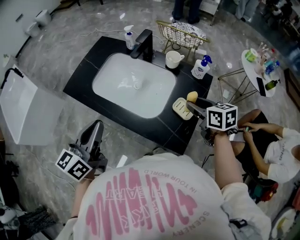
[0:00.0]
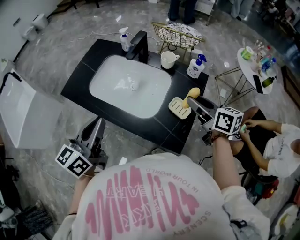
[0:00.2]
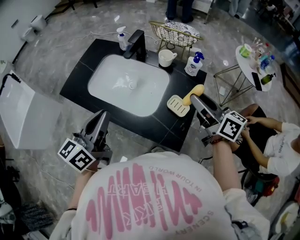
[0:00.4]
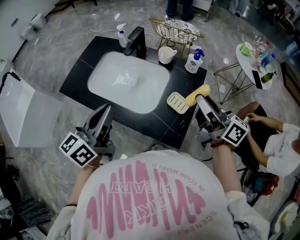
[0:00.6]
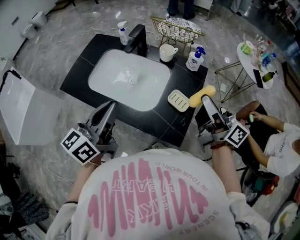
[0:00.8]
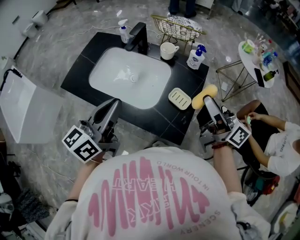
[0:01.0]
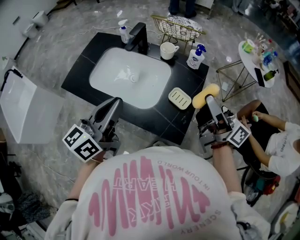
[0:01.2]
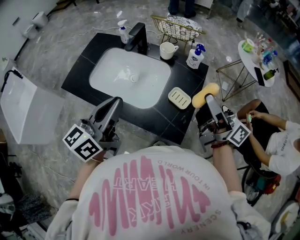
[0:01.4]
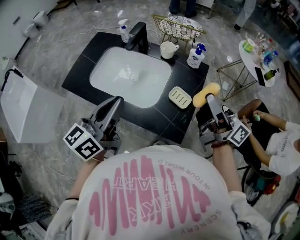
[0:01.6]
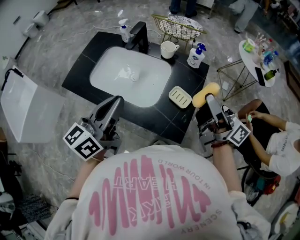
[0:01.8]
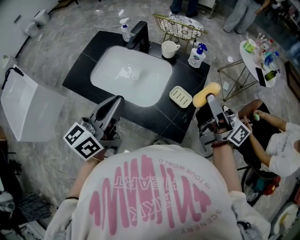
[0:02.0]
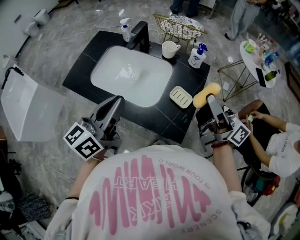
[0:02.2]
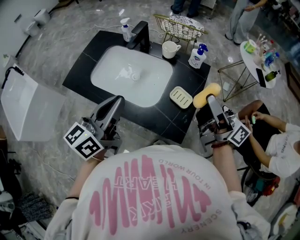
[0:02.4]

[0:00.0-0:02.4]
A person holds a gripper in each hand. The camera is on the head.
0:00.0 to 0:01.2: The right gripper shifts some 15 cm upward and backward, and tilts its fingers approximately 60 degrees upward; the left gripper moves to the right, about 10 cm.
0:01.2 to 0:02.4: Neither gripper changes place.

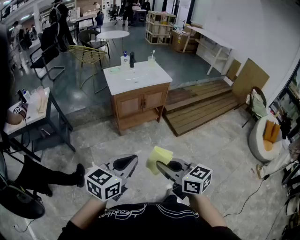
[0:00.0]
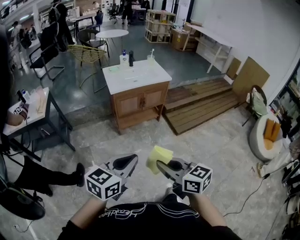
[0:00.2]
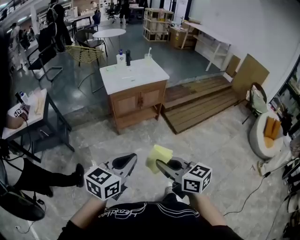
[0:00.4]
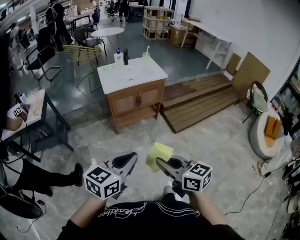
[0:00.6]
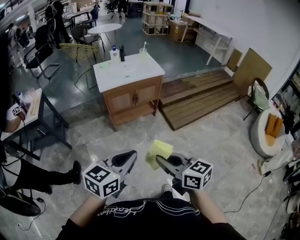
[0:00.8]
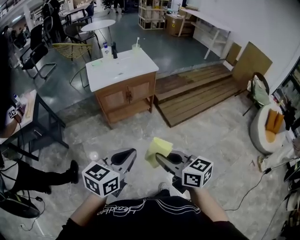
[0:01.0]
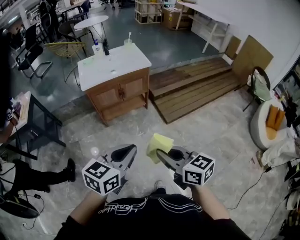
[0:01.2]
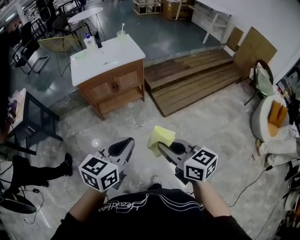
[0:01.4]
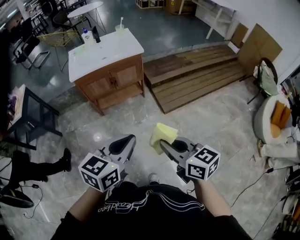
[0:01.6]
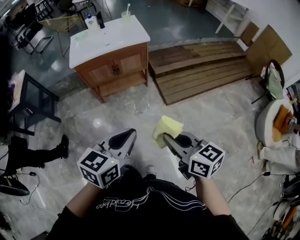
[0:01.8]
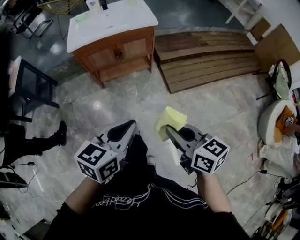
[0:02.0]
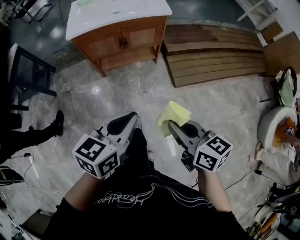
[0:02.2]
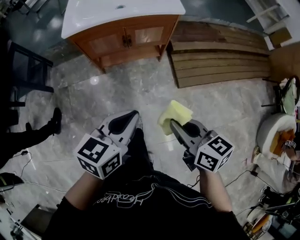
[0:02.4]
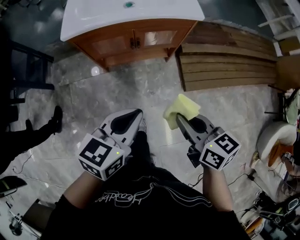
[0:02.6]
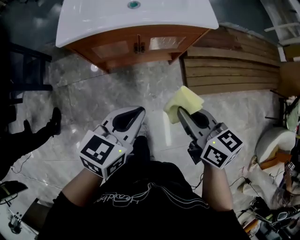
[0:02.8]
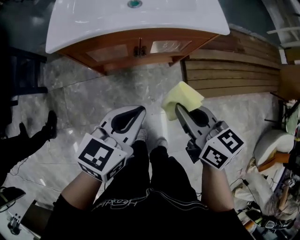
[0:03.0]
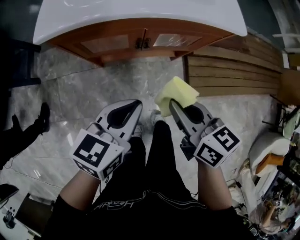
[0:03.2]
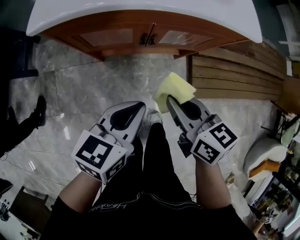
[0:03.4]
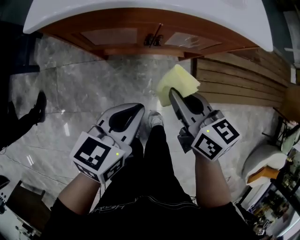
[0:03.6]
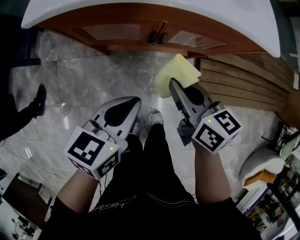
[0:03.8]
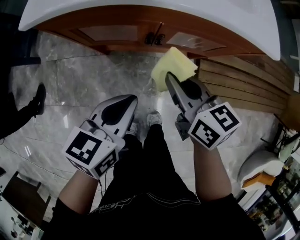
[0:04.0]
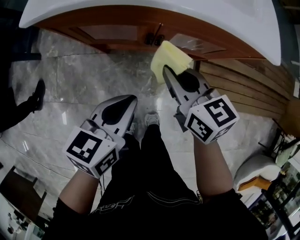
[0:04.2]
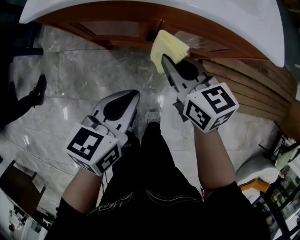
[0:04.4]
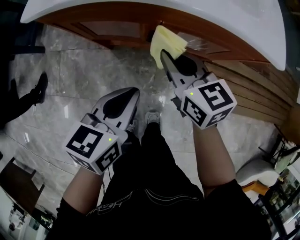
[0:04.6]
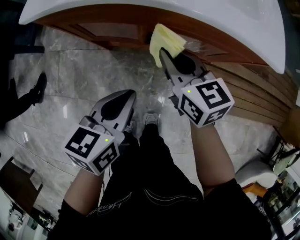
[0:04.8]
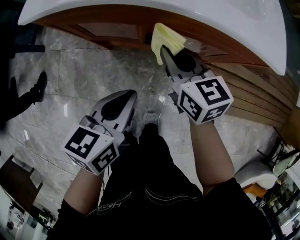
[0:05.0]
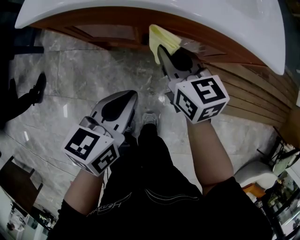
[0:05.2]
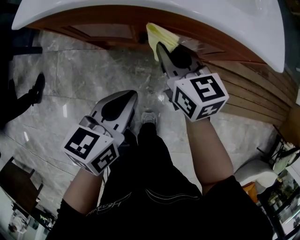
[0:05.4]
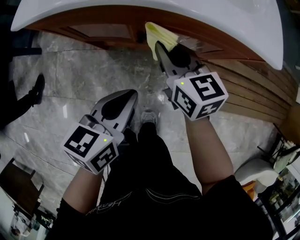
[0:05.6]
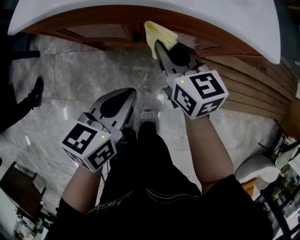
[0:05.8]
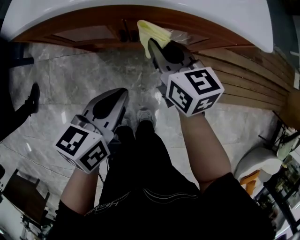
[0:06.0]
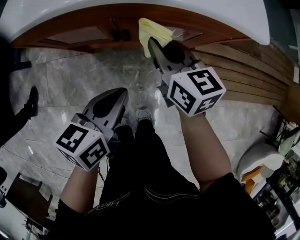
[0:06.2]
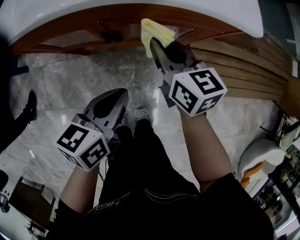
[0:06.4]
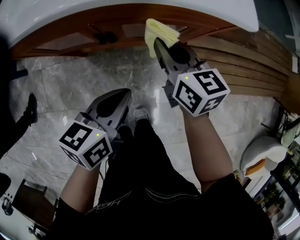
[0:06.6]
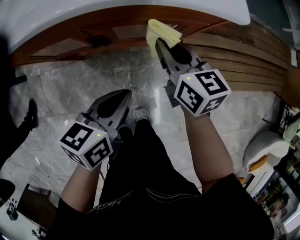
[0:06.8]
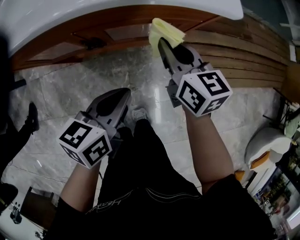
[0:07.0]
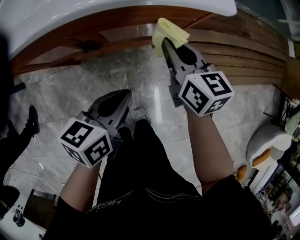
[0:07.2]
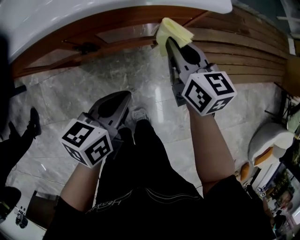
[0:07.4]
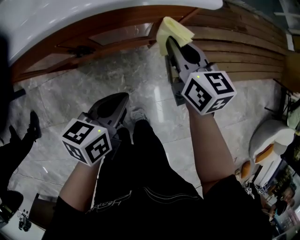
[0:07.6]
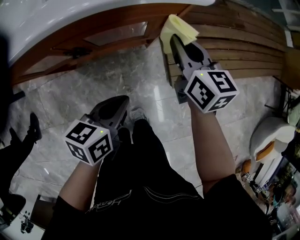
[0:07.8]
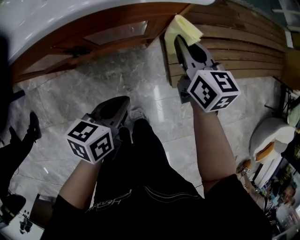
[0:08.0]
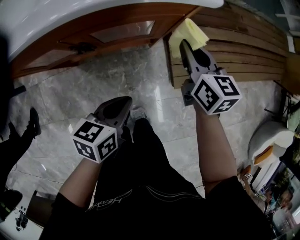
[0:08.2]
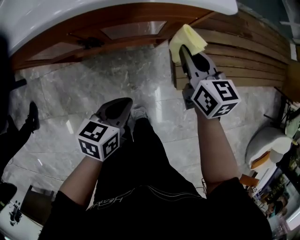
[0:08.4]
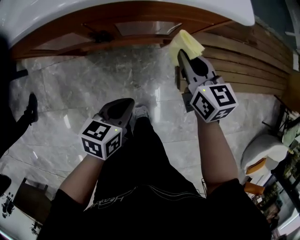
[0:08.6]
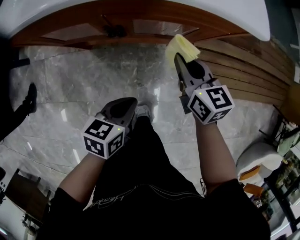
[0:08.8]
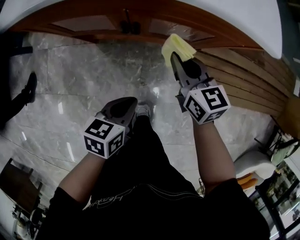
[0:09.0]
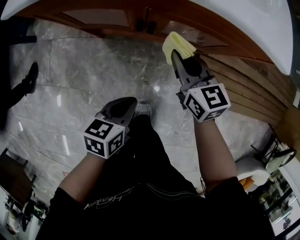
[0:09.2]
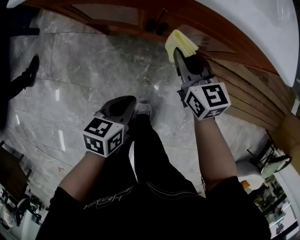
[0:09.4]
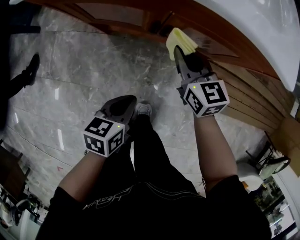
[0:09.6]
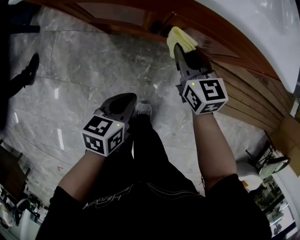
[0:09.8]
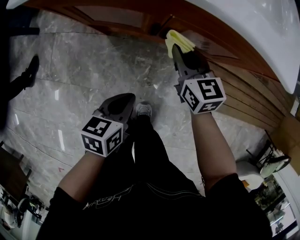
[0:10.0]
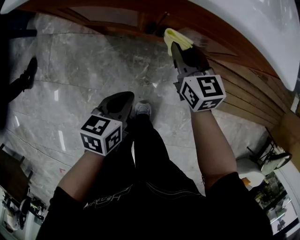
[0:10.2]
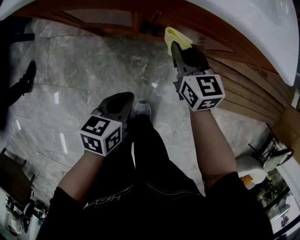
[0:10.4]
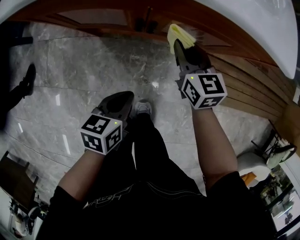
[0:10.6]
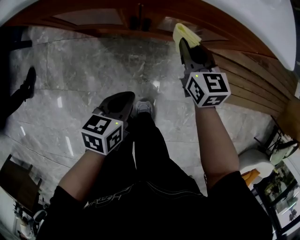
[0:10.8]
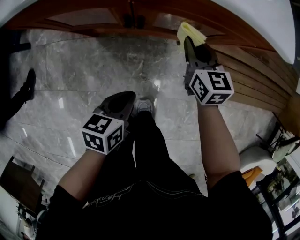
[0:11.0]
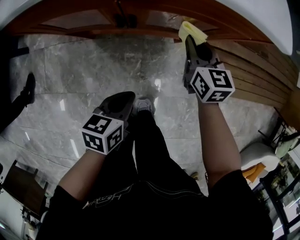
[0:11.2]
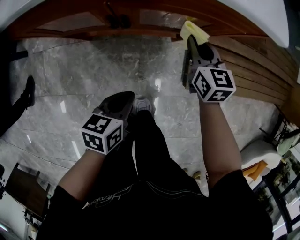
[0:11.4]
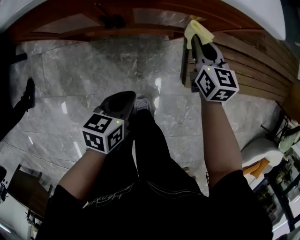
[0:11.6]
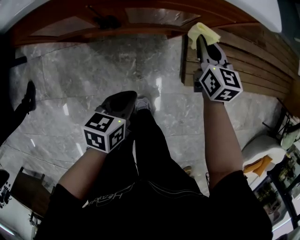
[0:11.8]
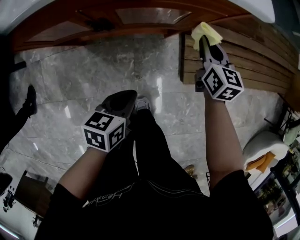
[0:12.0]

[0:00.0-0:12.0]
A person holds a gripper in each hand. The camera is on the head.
0:00.0 to 0:01.6: Both grippers move to the right and forward, approximately 35 cm.
0:01.6 to 0:03.0: The two grippers travel together, forward, some 40 cm. The grippers both shift downward by approximately 20 cm.
0:03.0 to 0:04.4: The left gripper shifts some 15 cm downward and forward, and turns by roughly 20 degrees; the right gripper moves forward and downward, roughly 20 cm.
0:04.4 to 0:06.0: The right gripper changes place by approximately 5 cm.
0:06.0 to 0:07.6: The left gripper shifts about 10 cm to the right, while the right gripper goes some 20 cm to the right, and turns by some 20 degrees.
0:07.6 to 0:09.0: The left gripper is displaced backward, downward and to the left by roughly 10 cm. The right gripper heads to the left, backward and downward, covering approximately 15 cm, and turns by roughly 20 degrees.
0:09.0 to 0:10.4: The grippers both shift to the left by approximately 5 cm.
0:10.4 to 0:12.0: The right gripper is displaced to the right by some 25 cm, and rotates approximately 30 degrees; the left gripper shifts approximately 10 cm to the right.

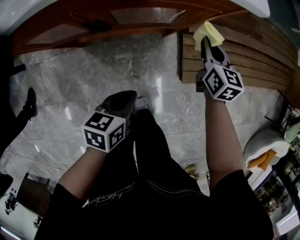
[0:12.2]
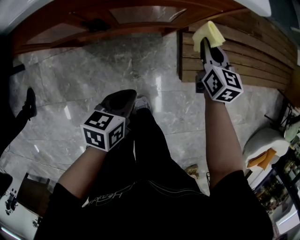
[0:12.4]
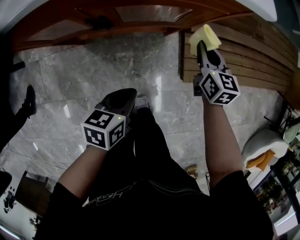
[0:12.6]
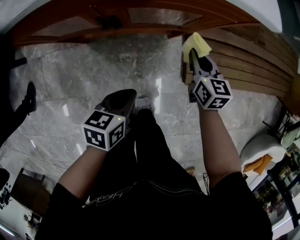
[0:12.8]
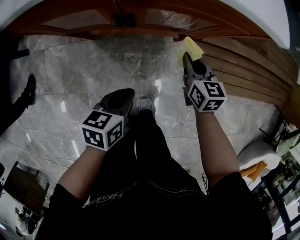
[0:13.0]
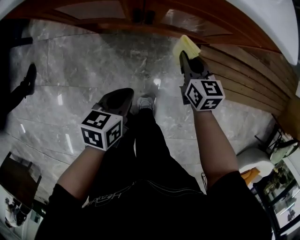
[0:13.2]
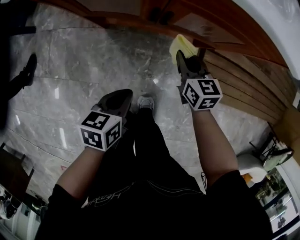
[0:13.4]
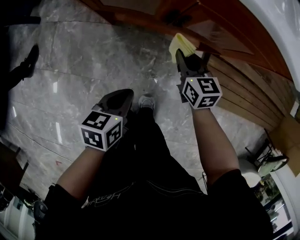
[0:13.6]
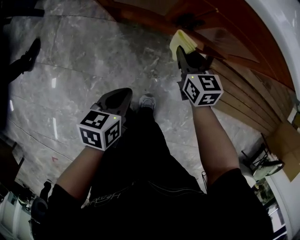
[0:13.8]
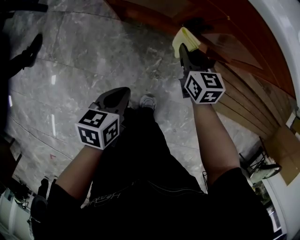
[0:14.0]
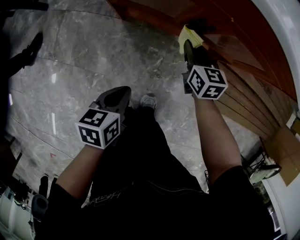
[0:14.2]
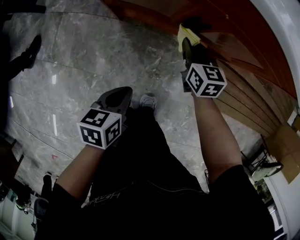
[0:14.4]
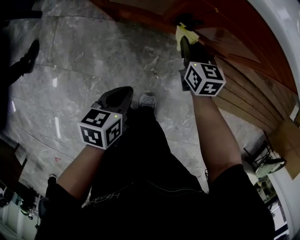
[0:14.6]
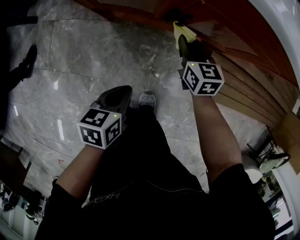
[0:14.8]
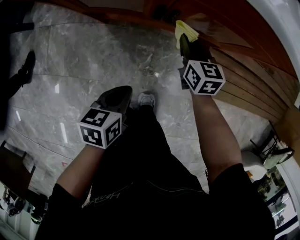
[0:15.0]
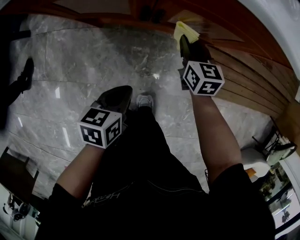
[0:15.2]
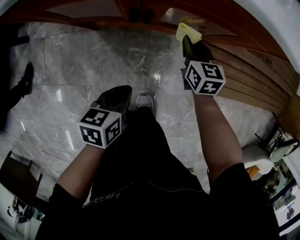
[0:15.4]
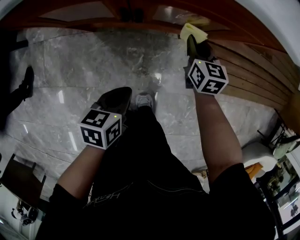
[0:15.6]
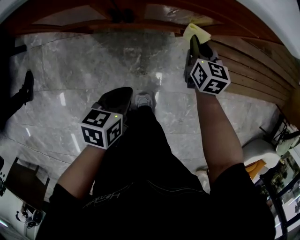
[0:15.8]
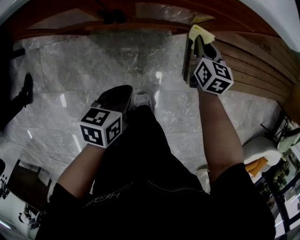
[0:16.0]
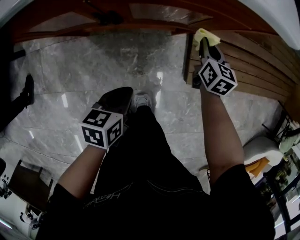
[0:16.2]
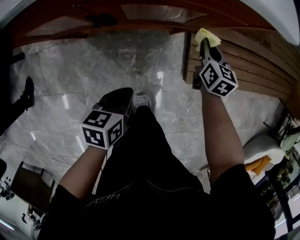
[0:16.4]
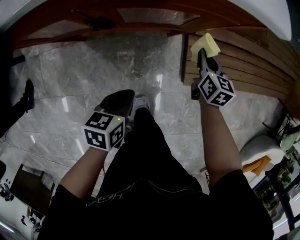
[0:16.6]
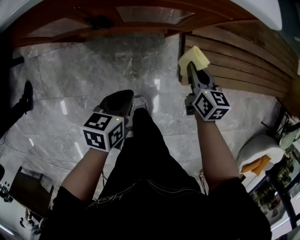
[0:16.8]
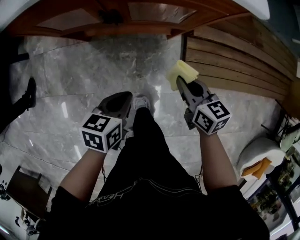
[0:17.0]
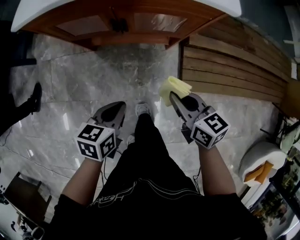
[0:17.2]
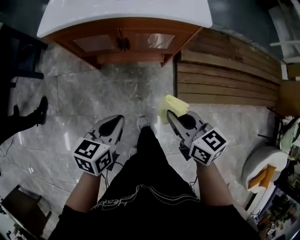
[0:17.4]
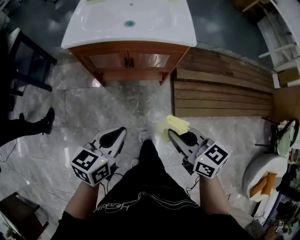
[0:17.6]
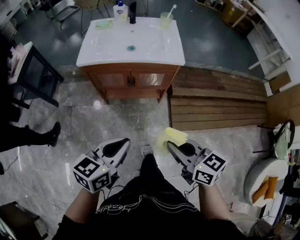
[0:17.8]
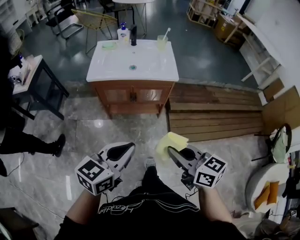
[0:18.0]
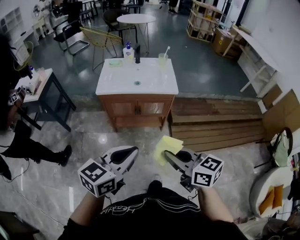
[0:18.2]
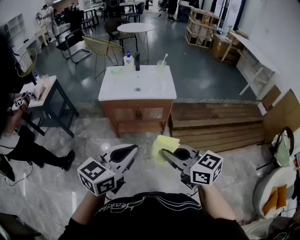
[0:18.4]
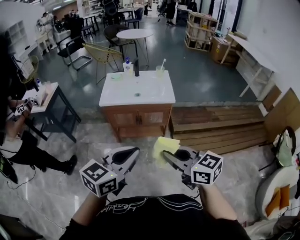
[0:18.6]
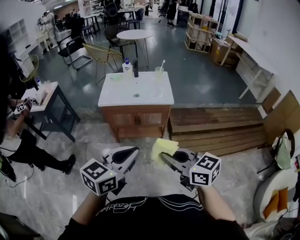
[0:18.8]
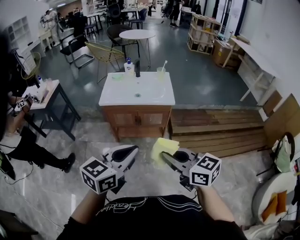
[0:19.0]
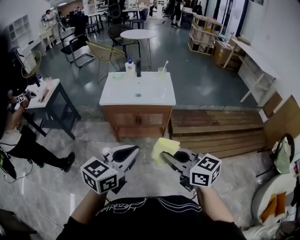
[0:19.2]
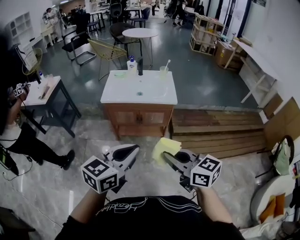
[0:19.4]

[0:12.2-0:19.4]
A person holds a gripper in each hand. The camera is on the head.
0:12.2 to 0:13.6: The left gripper moves approximately 15 cm, and changes its angle by about 20 degrees; the right gripper changes place by roughly 25 cm, and swivels some 30 degrees.
0:13.6 to 0:15.0: The right gripper goes some 5 cm forward.
0:15.0 to 0:16.6: The left gripper travels to the right by some 10 cm. The right gripper shifts roughly 25 cm to the right, and rotates some 30 degrees.
0:16.6 to 0:18.0: Both grippers move upward, roughly 50 cm. The left gripper tips its fingers upward by approximately 30 degrees. Meanwhile the right gripper swivels some 40 degrees.
0:18.0 to 0:19.4: Both grippers move upward and backward, about 10 cm.

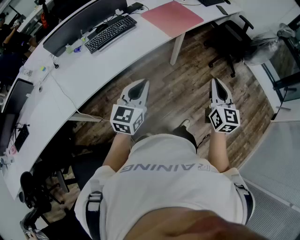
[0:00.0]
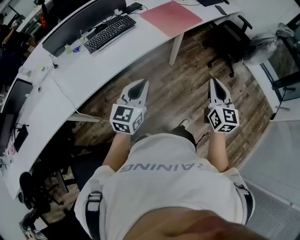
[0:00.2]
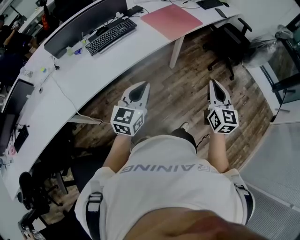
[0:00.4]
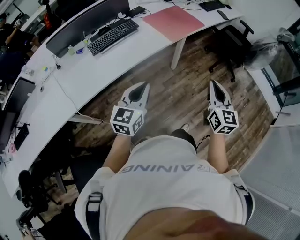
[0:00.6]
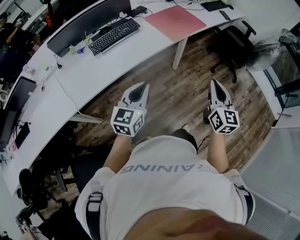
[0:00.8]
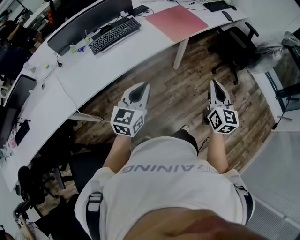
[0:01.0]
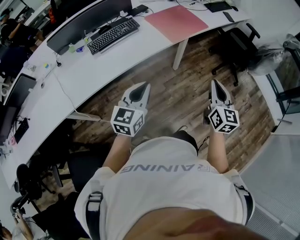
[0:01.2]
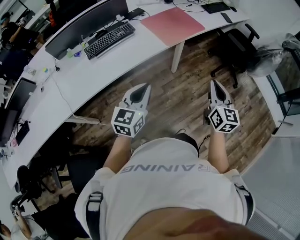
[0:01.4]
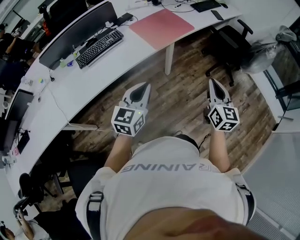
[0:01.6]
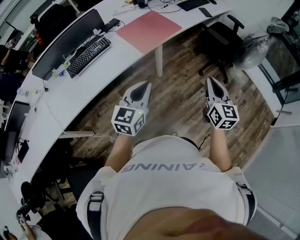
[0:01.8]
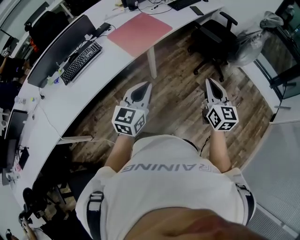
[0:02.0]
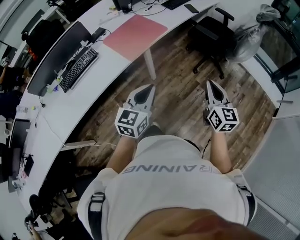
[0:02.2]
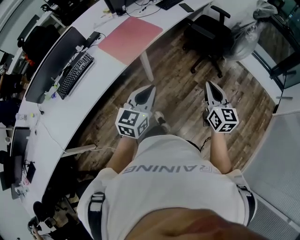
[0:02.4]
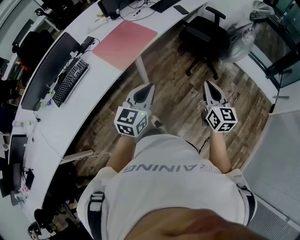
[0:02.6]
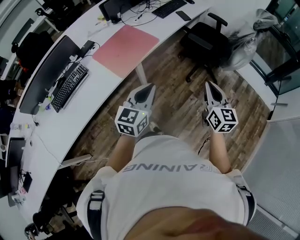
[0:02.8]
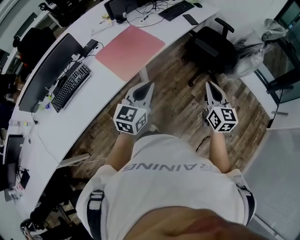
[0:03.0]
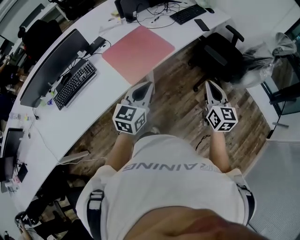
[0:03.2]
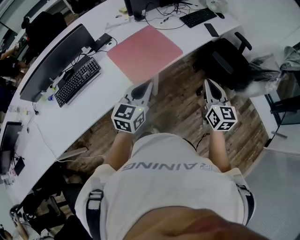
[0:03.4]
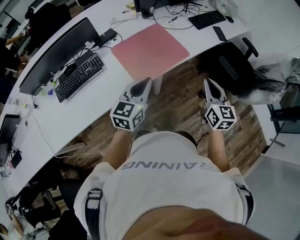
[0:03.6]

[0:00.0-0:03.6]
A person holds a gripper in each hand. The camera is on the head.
0:00.0 to 0:01.8: The two grippers go about 25 cm to the right and forward.
0:01.8 to 0:03.6: Both grippers move forward, some 35 cm.
